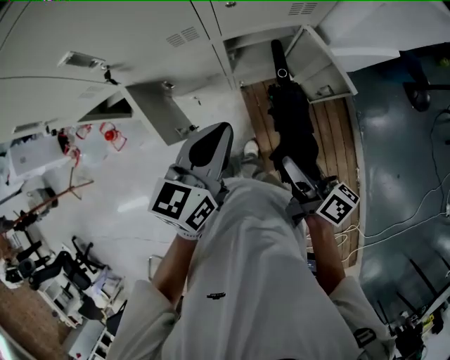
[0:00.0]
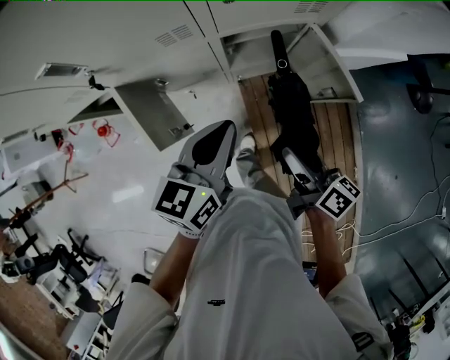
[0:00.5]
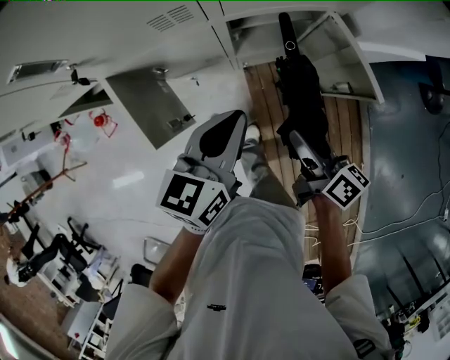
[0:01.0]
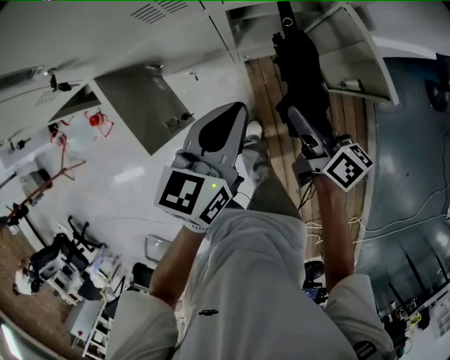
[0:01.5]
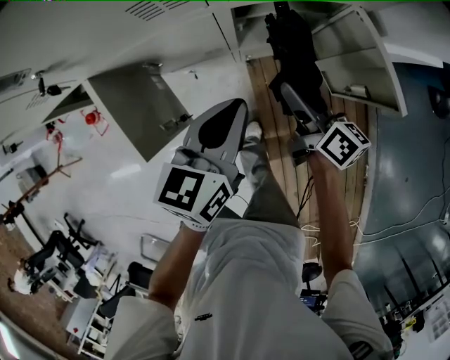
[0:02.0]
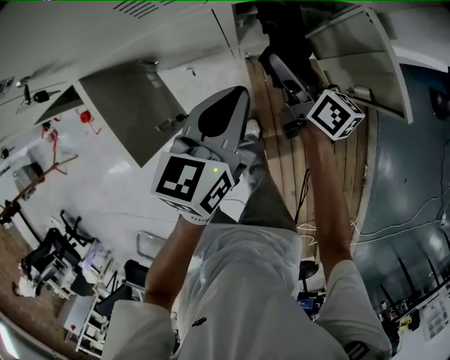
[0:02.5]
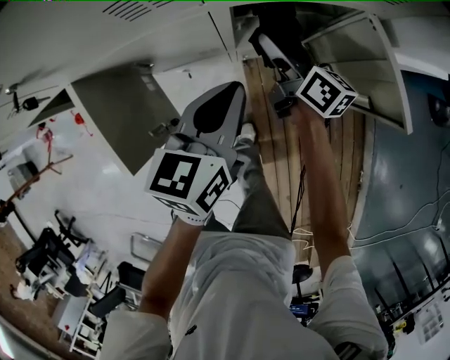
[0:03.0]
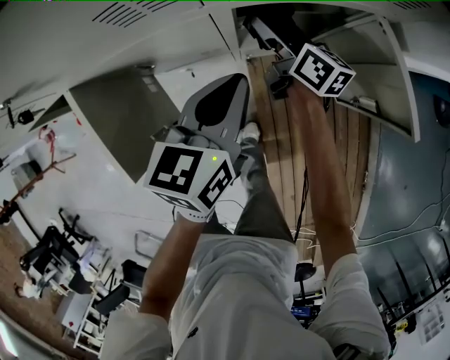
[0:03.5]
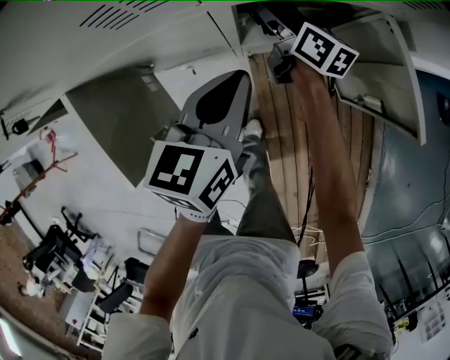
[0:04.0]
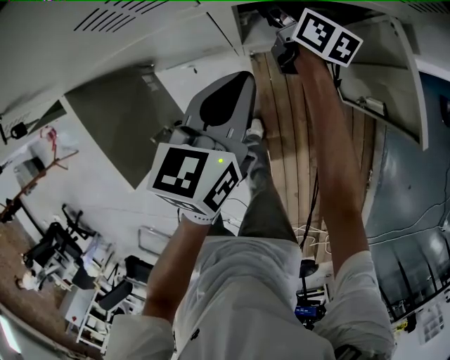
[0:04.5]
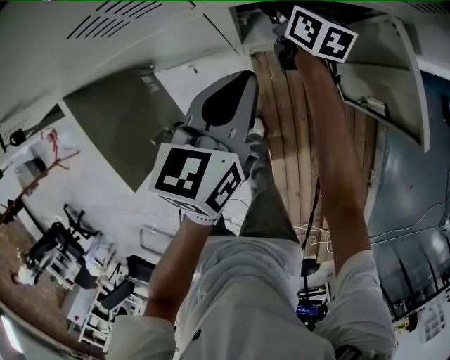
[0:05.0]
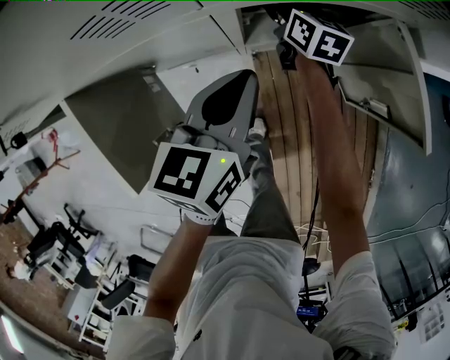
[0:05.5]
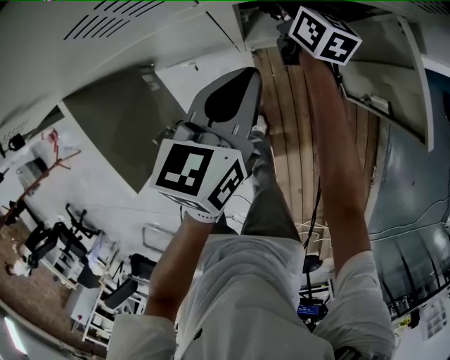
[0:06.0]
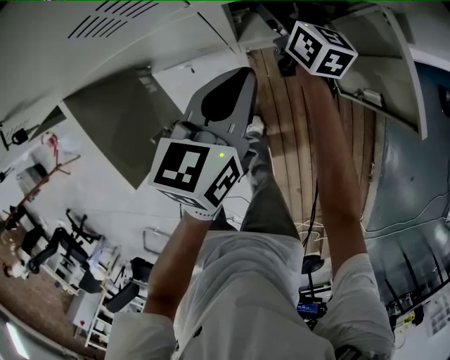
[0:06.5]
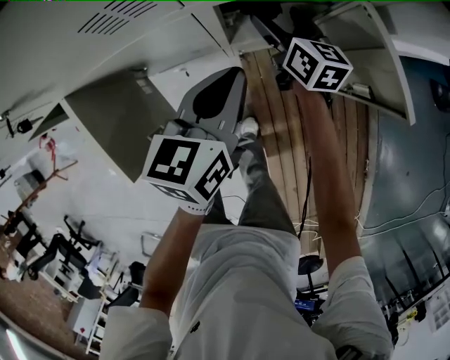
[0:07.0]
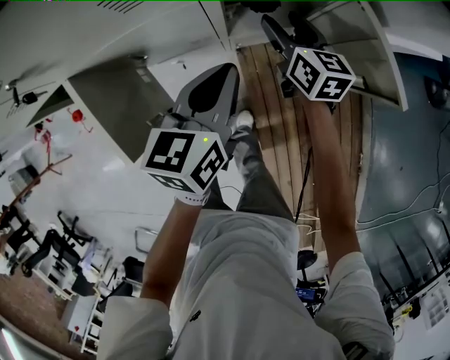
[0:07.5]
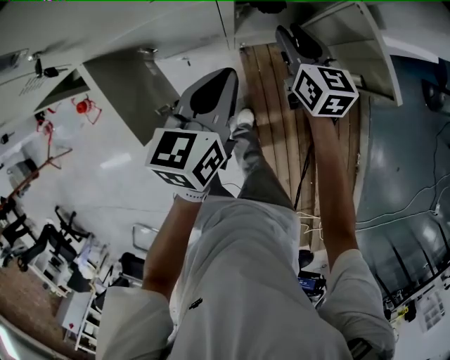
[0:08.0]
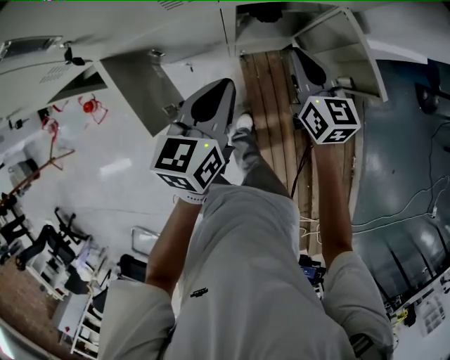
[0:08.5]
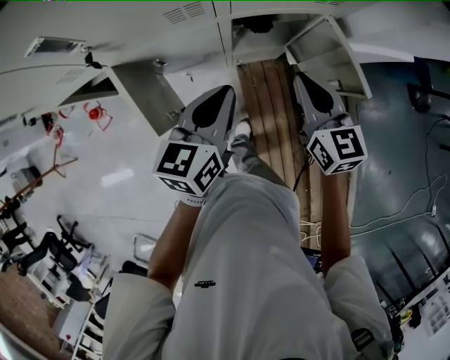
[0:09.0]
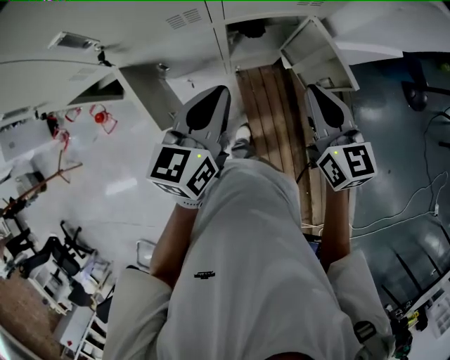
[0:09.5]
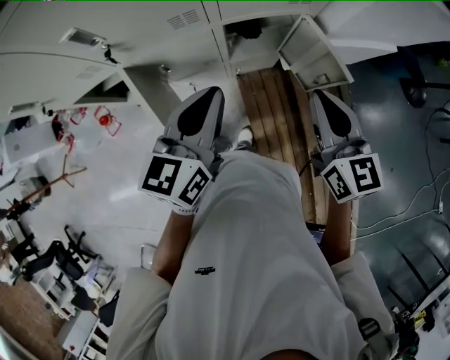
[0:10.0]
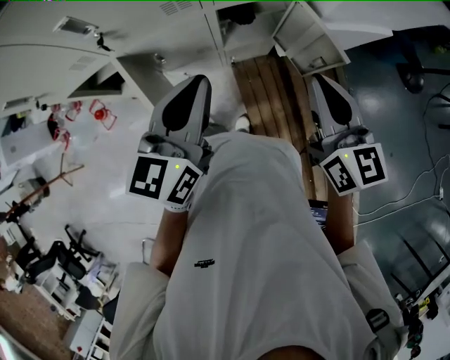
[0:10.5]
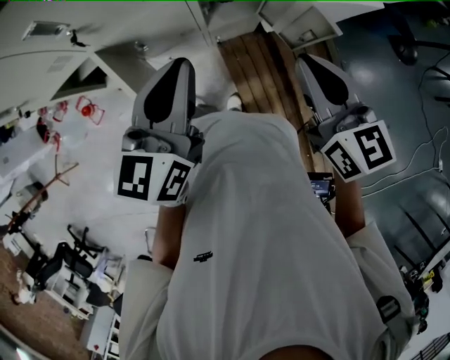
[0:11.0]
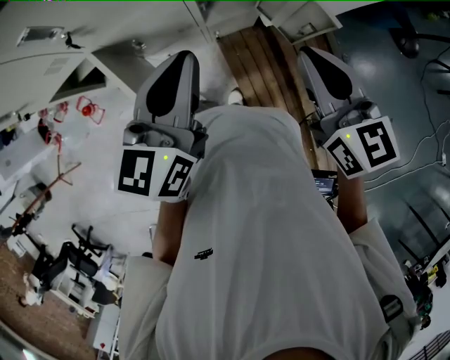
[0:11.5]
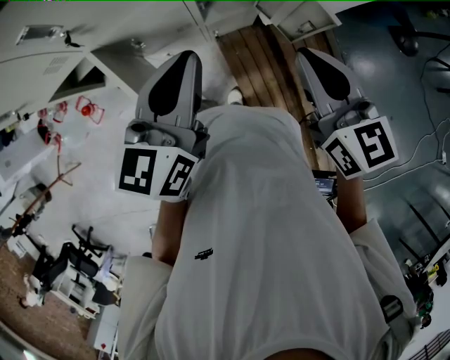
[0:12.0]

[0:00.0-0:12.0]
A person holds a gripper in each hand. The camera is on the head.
0:00.0 to 0:02.0: The left gripper is displaced downward and forward by approximately 15 cm, while the right gripper travels forward and downward by about 25 cm.
0:02.0 to 0:04.0: The right gripper heads forward, covering about 20 cm; the left gripper shifts roughly 5 cm forward.
0:04.0 to 0:06.0: The right gripper opens up.
0:06.0 to 0:08.0: The left gripper moves backward, roughly 5 cm. Meanwhile the right gripper travels backward and upward by some 20 cm, and closes.
0:08.0 to 0:10.0: The grippers both shift upward and backward by approximately 25 cm.
0:10.0 to 0:12.0: The grippers move only a little.

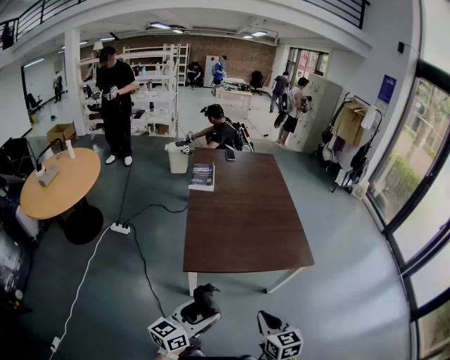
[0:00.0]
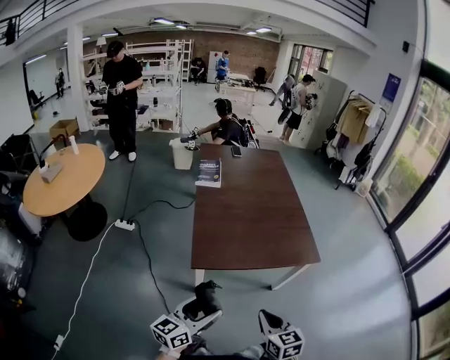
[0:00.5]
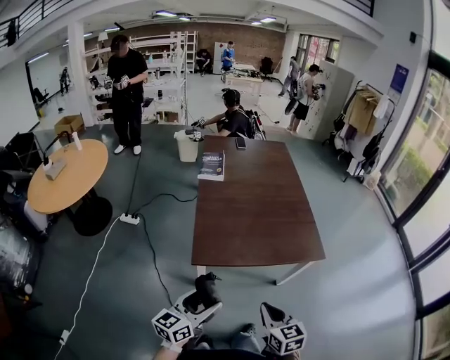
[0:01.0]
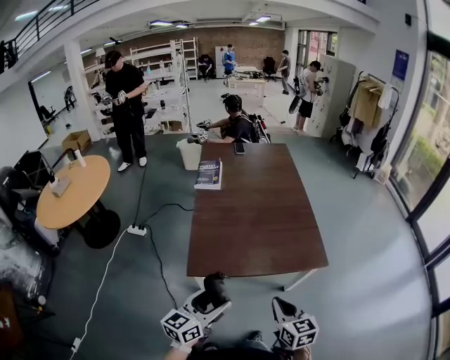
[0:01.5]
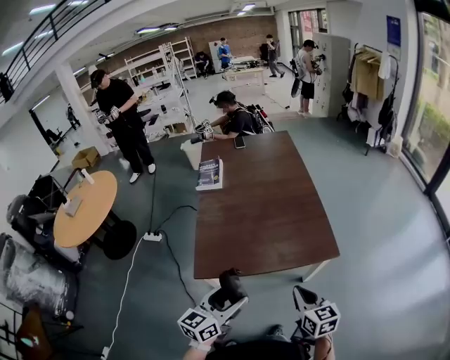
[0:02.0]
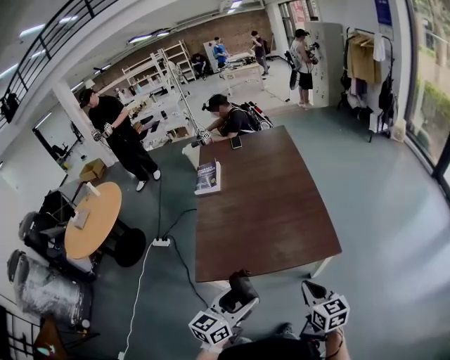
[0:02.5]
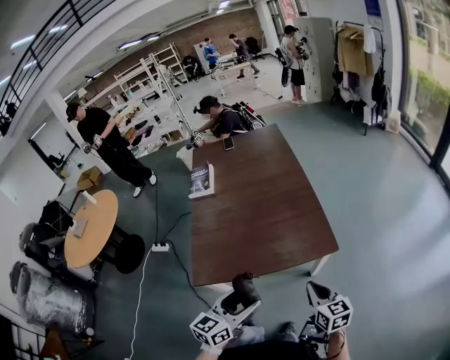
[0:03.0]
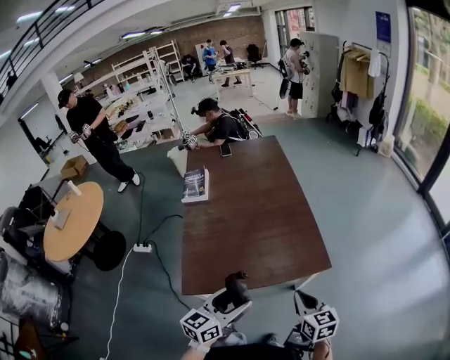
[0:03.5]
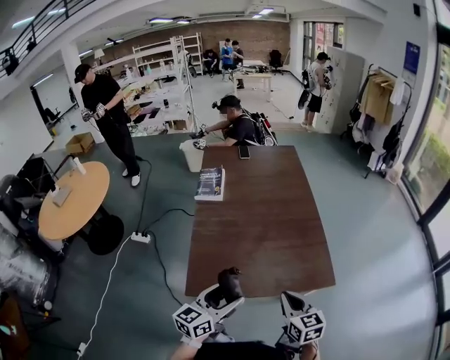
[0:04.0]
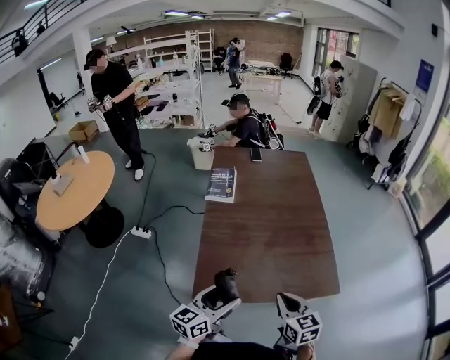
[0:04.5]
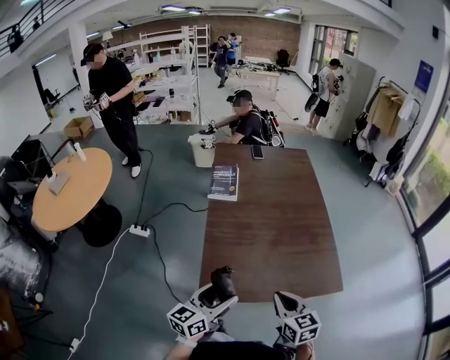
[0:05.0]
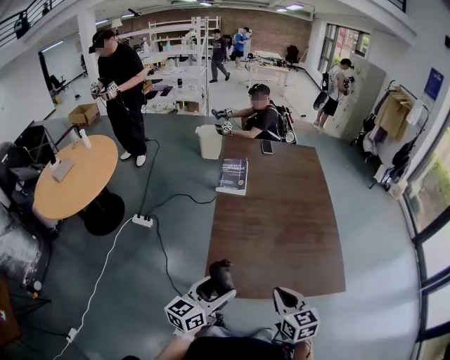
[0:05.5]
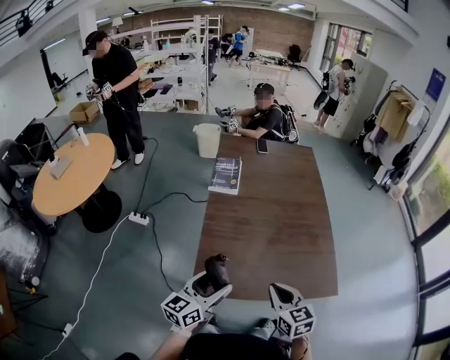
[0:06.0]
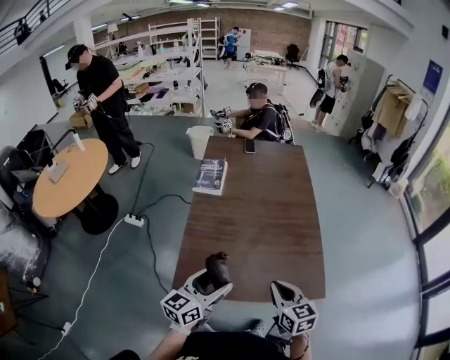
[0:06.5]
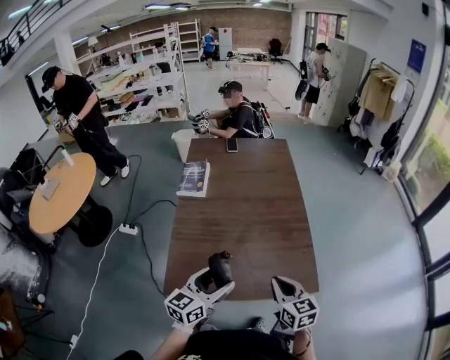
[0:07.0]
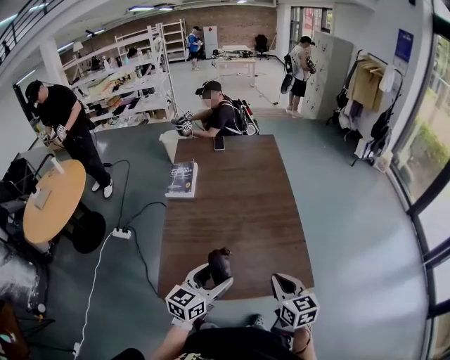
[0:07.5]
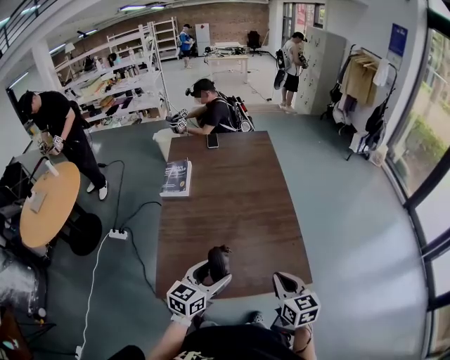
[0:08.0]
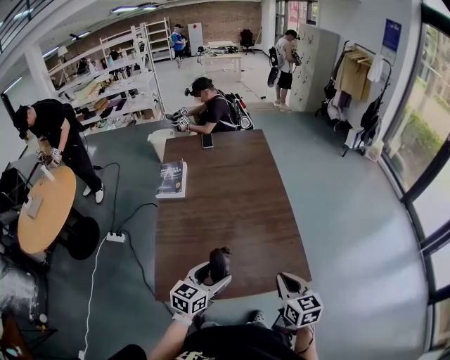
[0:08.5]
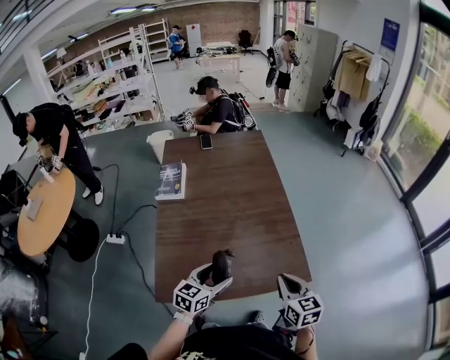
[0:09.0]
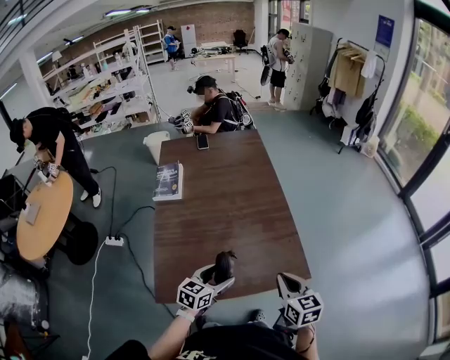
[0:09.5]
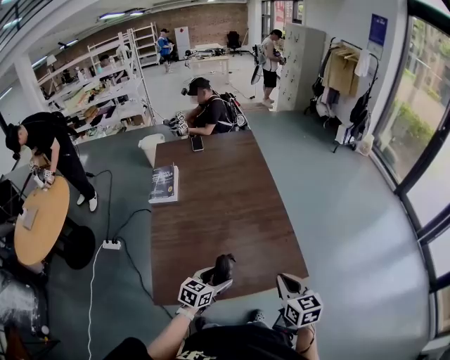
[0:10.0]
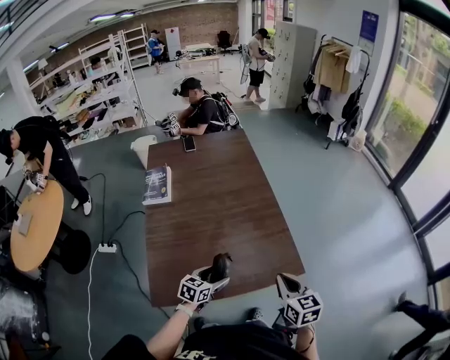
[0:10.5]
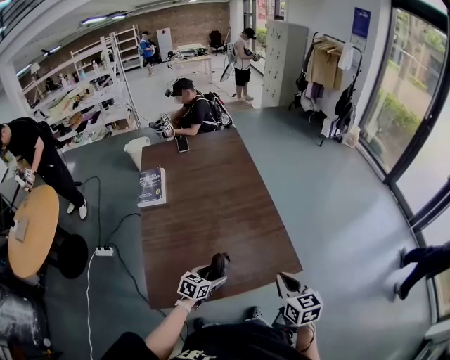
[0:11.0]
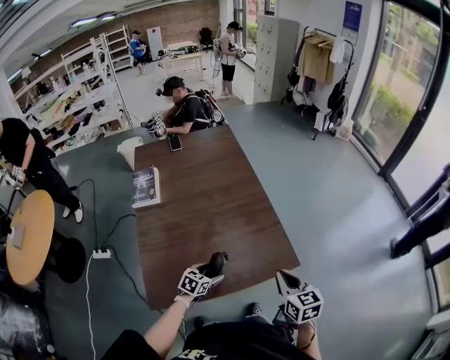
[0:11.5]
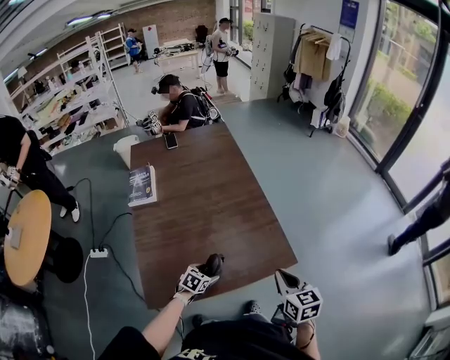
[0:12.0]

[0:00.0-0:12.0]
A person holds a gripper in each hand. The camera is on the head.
0:00.0 to 0:02.0: Both grippers travel together forward and to the right, some 20 cm.
0:02.0 to 0:04.0: The left gripper travels forward by approximately 10 cm, and travels to the right and back again, some 10 cm each way; the right gripper goes roughly 10 cm forward and to the left.
0:04.0 to 0:06.0: The two grippers go roughly 15 cm to the left and forward.
0:06.0 to 0:08.0: Both grippers travel together to the right, about 20 cm.
0:08.0 to 0:10.0: The left gripper is displaced downward by about 10 cm.
0:10.0 to 0:12.0: The left gripper travels downward by roughly 15 cm, and swivels about 30 degrees.

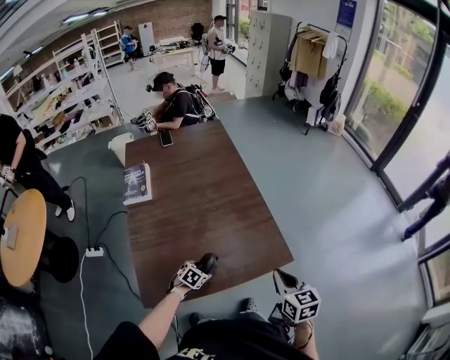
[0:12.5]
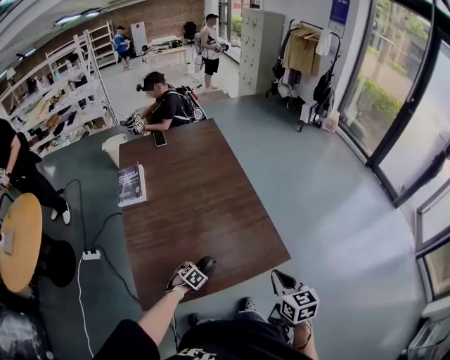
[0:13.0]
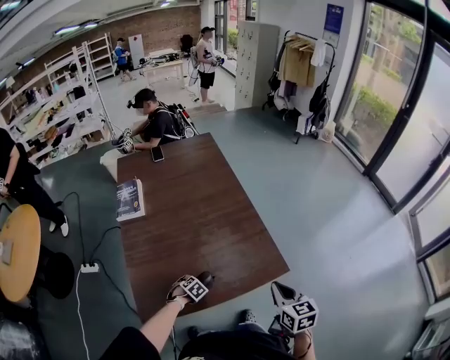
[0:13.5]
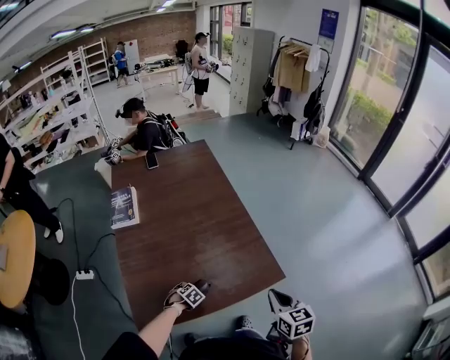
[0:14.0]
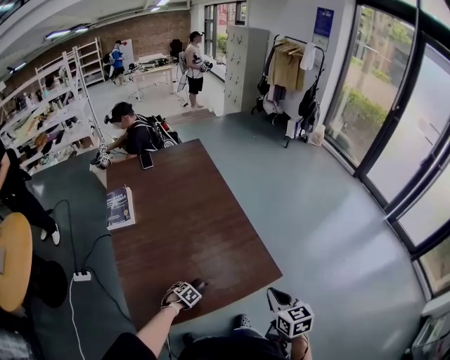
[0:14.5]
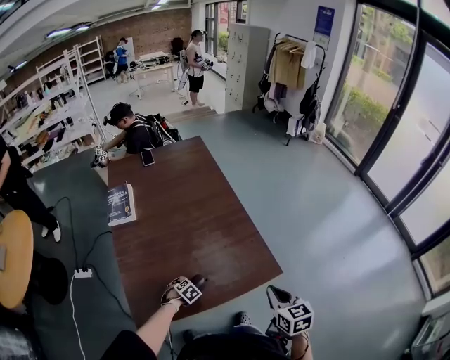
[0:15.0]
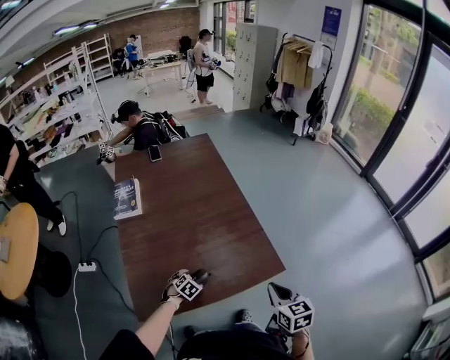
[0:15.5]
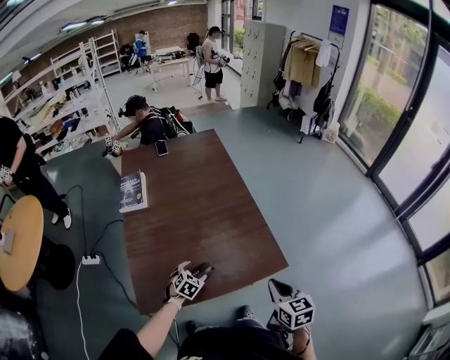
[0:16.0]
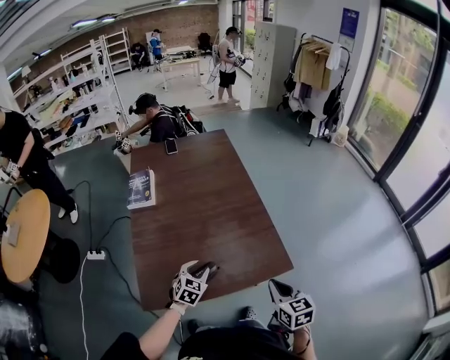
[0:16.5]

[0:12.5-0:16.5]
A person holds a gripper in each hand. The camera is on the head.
0:12.5 to 0:14.5: The left gripper goes roughly 10 cm downward.
0:14.5 to 0:16.5: The left gripper shifts roughly 20 cm upward, tips its fingers upward by about 40 degrees, and closes.
